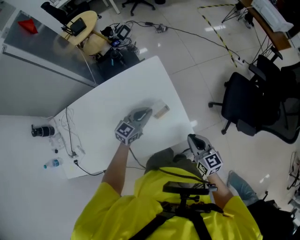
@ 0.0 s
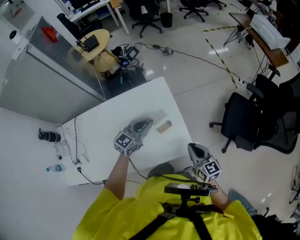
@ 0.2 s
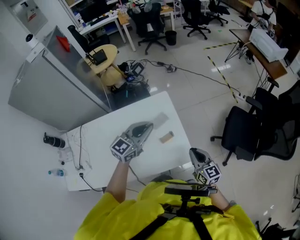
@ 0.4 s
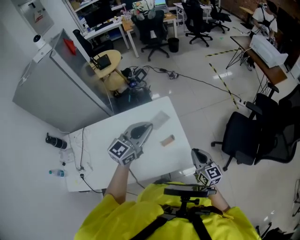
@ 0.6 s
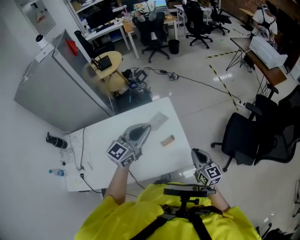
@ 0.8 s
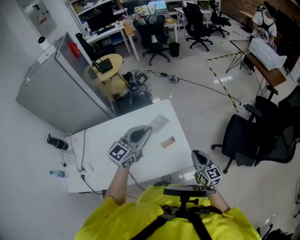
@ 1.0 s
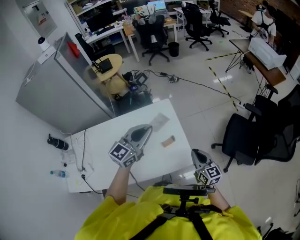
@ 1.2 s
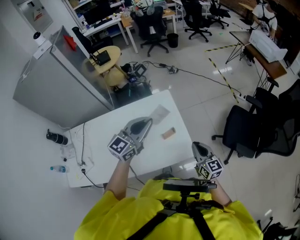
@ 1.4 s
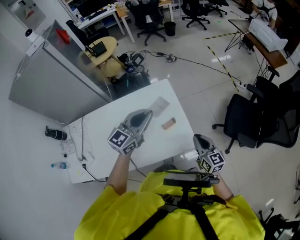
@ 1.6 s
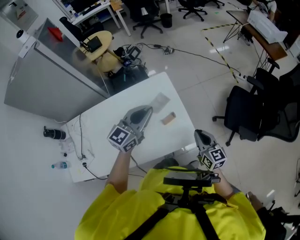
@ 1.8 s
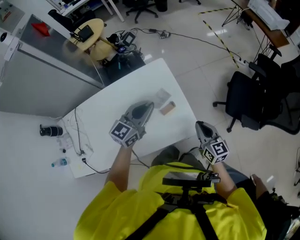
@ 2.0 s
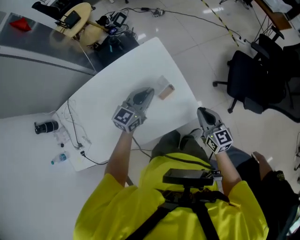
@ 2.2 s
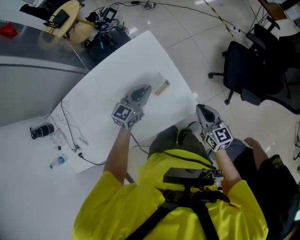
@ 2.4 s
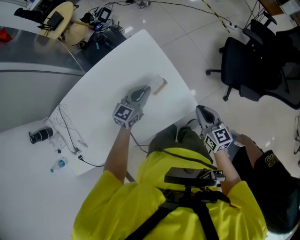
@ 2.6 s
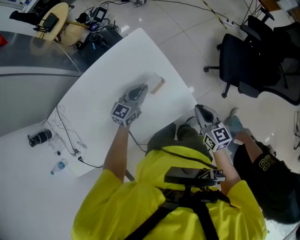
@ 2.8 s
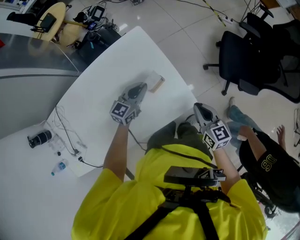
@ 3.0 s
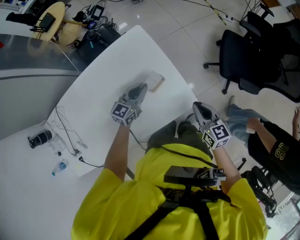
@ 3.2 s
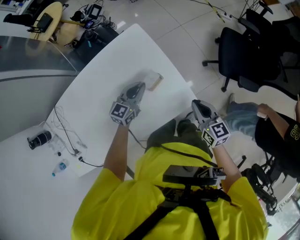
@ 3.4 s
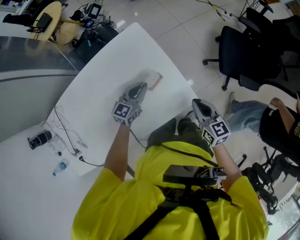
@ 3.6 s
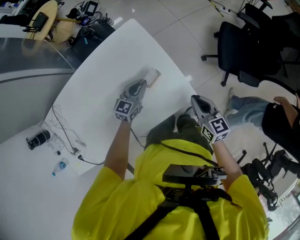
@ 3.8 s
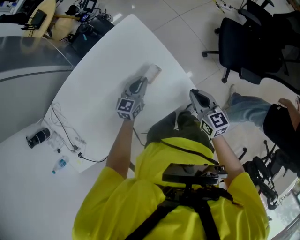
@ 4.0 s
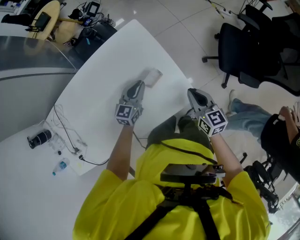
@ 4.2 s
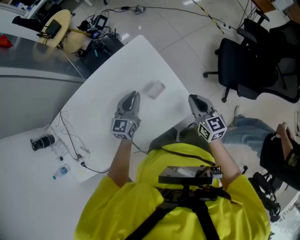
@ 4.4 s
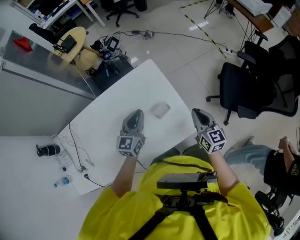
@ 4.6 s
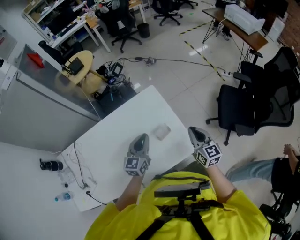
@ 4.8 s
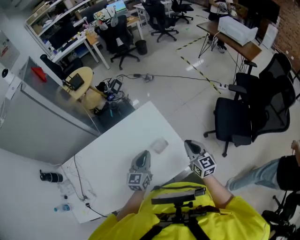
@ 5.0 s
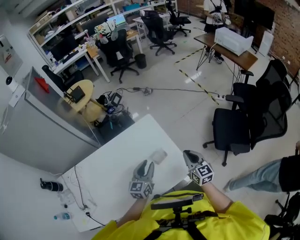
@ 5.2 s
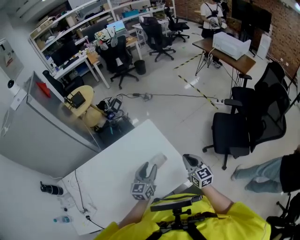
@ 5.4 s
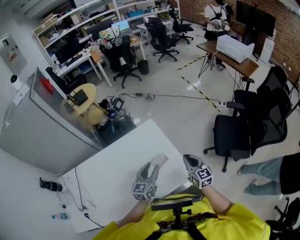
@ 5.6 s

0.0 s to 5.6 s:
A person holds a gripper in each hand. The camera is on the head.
0.0 to 1.4 s: The right gripper heads upward, covering roughly 5 cm, while the left gripper shifts approximately 25 cm upward.
1.4 to 2.8 s: The right gripper goes about 10 cm downward, while the left gripper heads downward, covering some 30 cm, and swivels some 20 degrees.
2.8 to 4.2 s: The right gripper ends up some 5 cm from where it was.
4.2 to 5.6 s: The left gripper goes approximately 15 cm upward and backward, and opens its fingers, while the right gripper is displaced upward by some 10 cm.

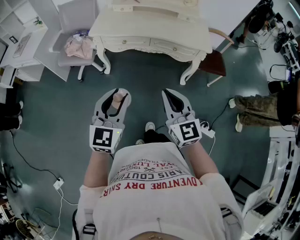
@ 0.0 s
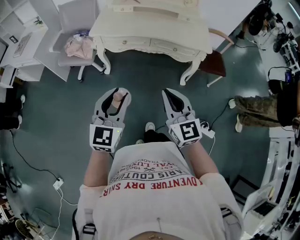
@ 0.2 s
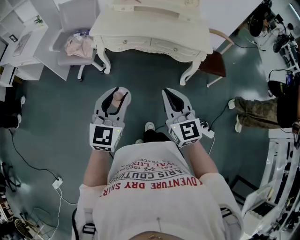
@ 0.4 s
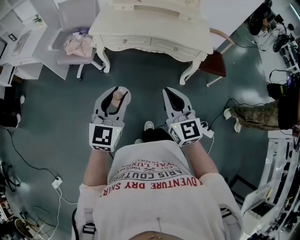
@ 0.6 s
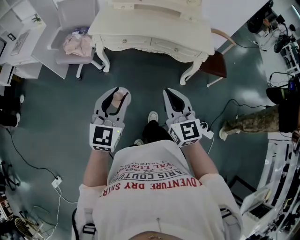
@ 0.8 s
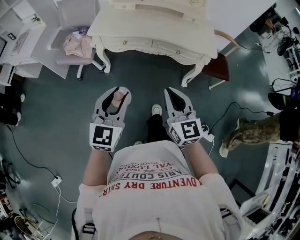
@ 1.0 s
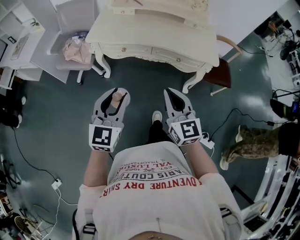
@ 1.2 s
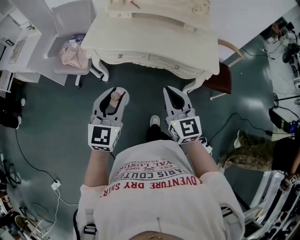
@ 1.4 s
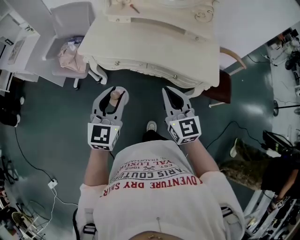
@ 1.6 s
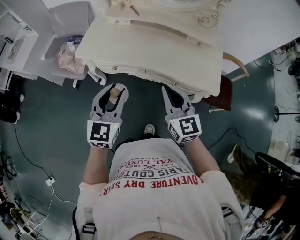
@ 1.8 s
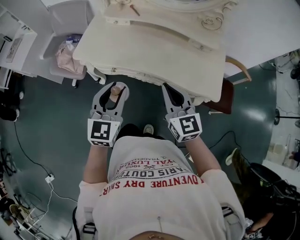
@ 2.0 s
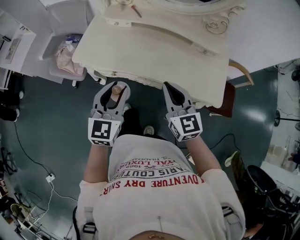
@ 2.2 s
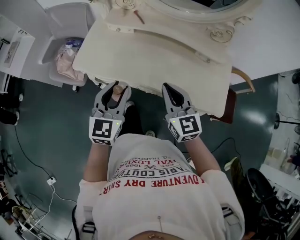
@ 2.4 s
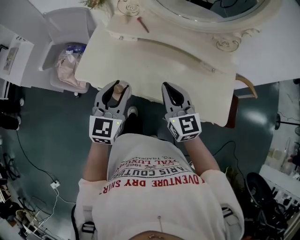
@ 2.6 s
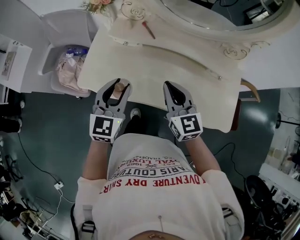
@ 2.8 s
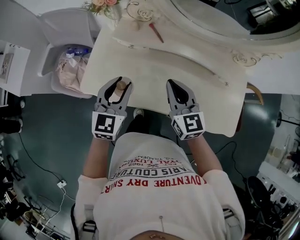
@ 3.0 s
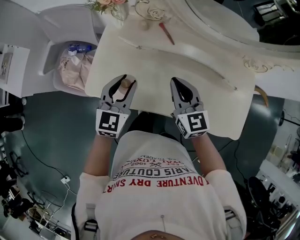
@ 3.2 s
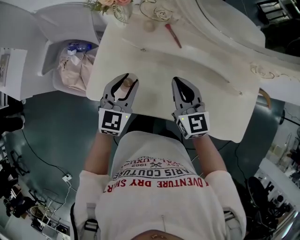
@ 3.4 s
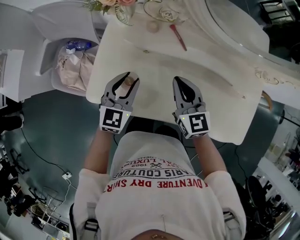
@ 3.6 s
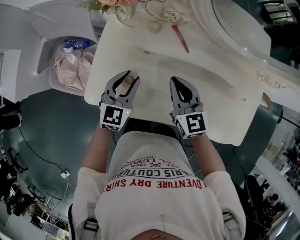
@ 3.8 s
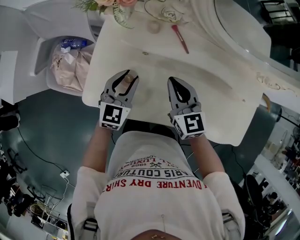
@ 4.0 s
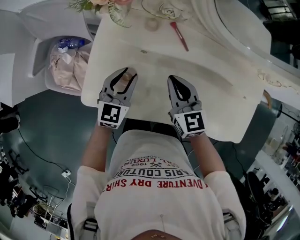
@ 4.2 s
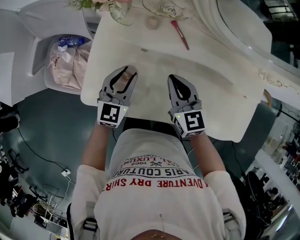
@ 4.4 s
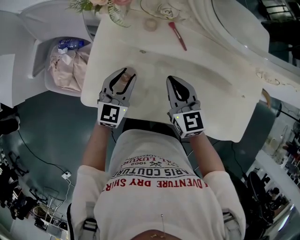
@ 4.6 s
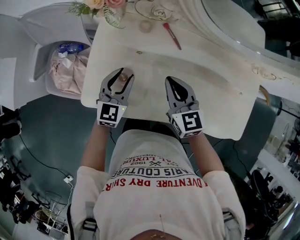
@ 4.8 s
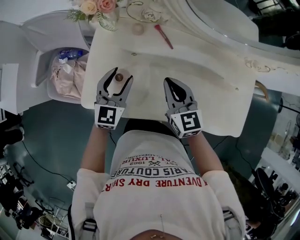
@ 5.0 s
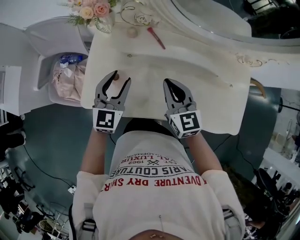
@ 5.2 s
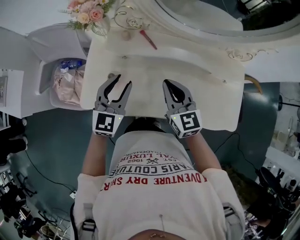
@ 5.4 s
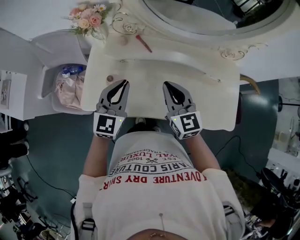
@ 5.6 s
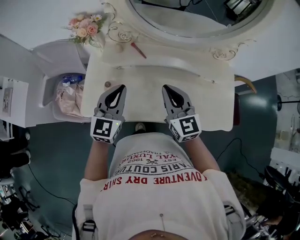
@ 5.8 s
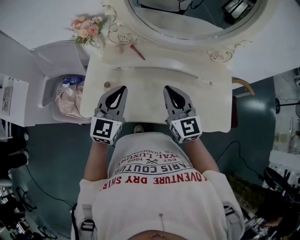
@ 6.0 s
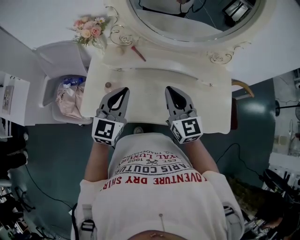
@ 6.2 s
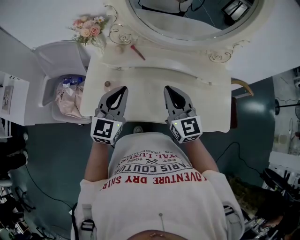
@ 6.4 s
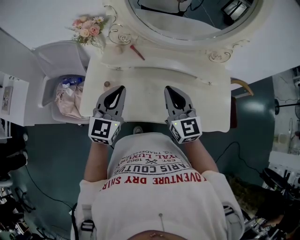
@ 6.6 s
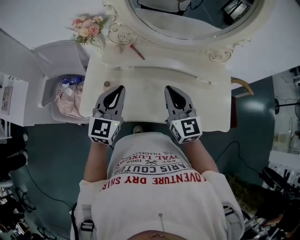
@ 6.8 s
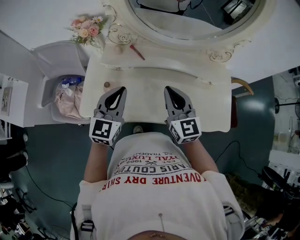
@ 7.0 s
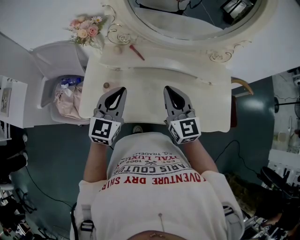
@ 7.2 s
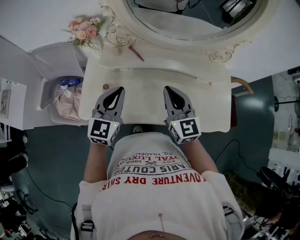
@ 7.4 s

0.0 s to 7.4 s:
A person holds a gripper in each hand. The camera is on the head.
0.0 to 1.4 s: Both grippers travel together forward, about 20 cm.
1.4 to 3.0 s: The two grippers travel together, forward, roughly 50 cm.
3.0 to 4.4 s: The left gripper is displaced downward and forward by approximately 20 cm, while the right gripper heads downward, forward and to the left, covering approximately 15 cm.
4.4 to 6.0 s: The two grippers go some 25 cm upward, backward and to the right. The left gripper closes, while the right gripper rotates approximately 20 degrees.
6.0 to 7.4 s: There are only small adjustments of the grippers.

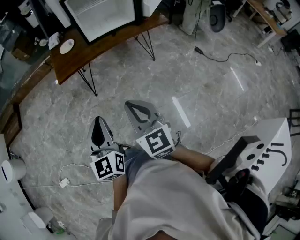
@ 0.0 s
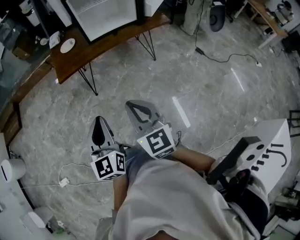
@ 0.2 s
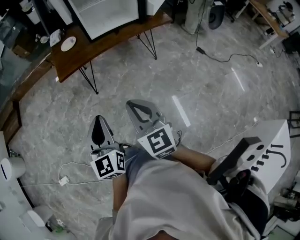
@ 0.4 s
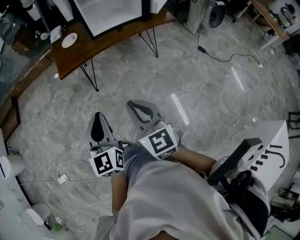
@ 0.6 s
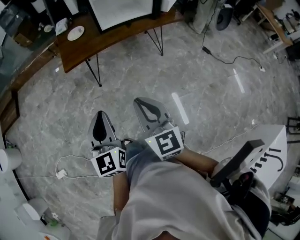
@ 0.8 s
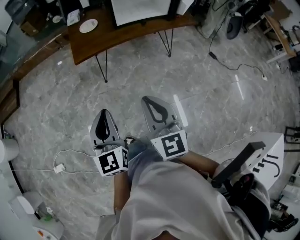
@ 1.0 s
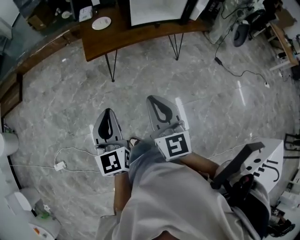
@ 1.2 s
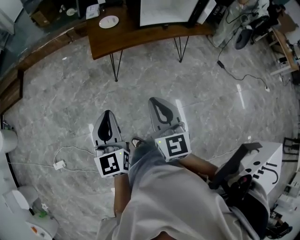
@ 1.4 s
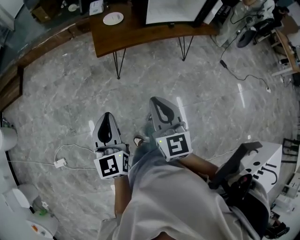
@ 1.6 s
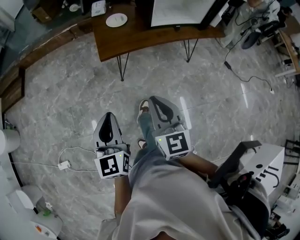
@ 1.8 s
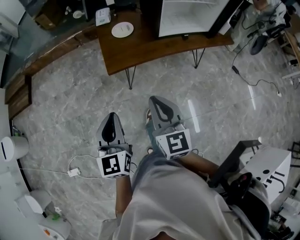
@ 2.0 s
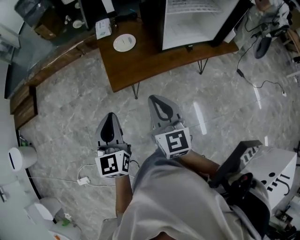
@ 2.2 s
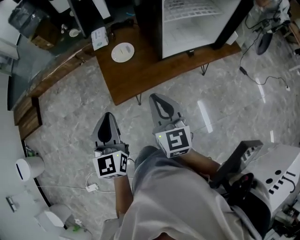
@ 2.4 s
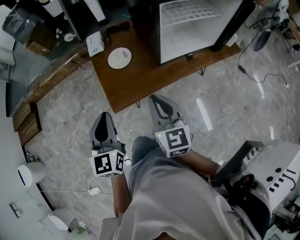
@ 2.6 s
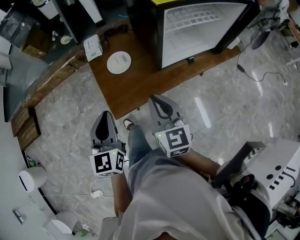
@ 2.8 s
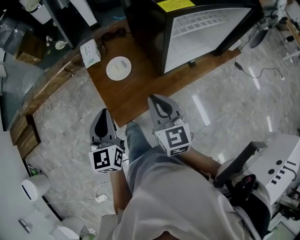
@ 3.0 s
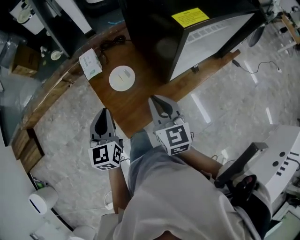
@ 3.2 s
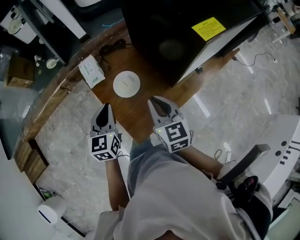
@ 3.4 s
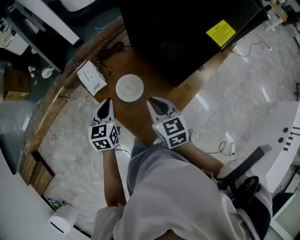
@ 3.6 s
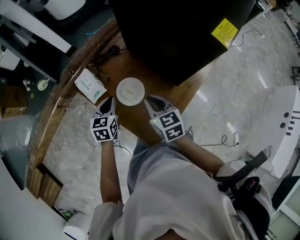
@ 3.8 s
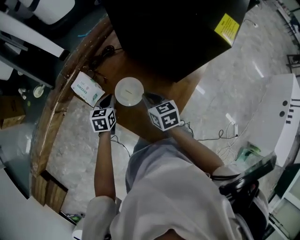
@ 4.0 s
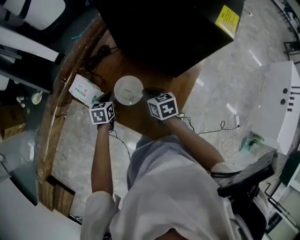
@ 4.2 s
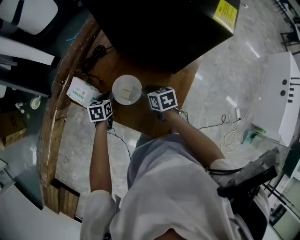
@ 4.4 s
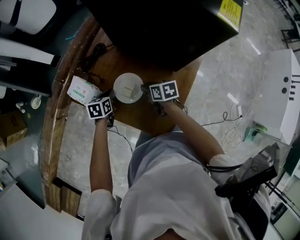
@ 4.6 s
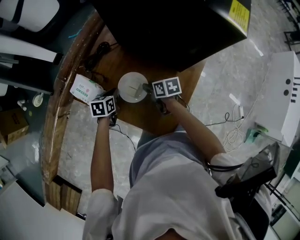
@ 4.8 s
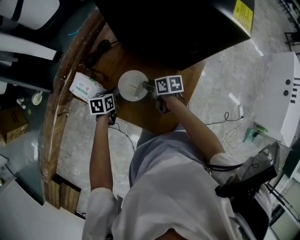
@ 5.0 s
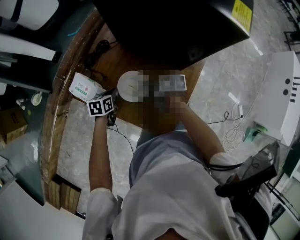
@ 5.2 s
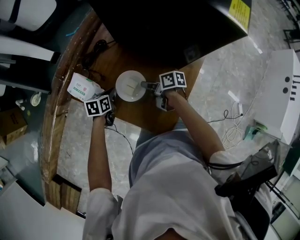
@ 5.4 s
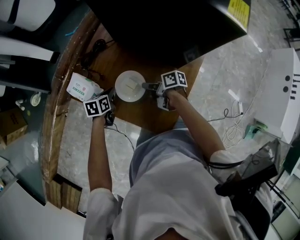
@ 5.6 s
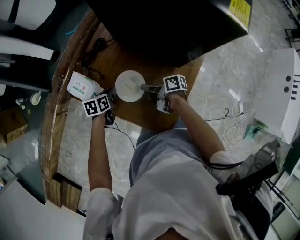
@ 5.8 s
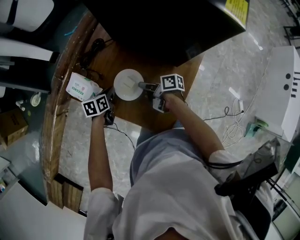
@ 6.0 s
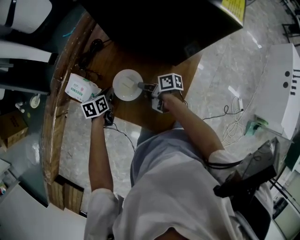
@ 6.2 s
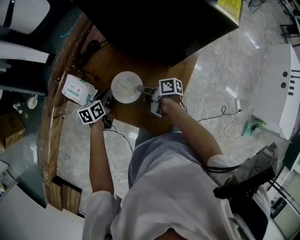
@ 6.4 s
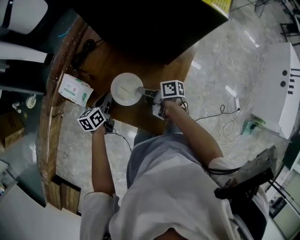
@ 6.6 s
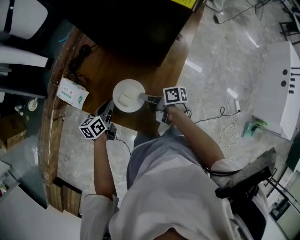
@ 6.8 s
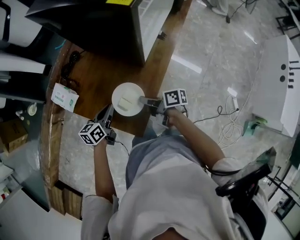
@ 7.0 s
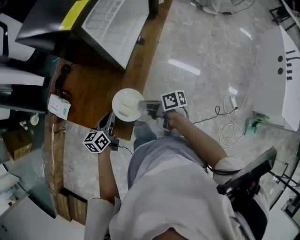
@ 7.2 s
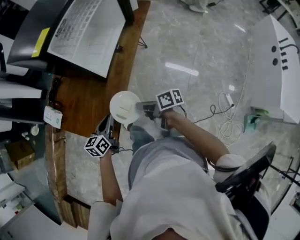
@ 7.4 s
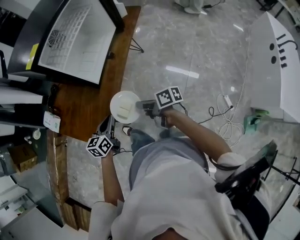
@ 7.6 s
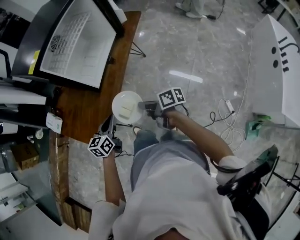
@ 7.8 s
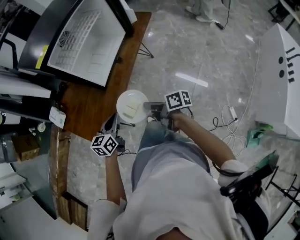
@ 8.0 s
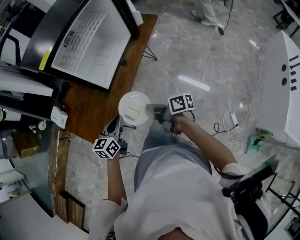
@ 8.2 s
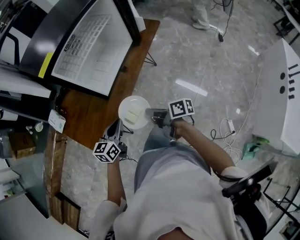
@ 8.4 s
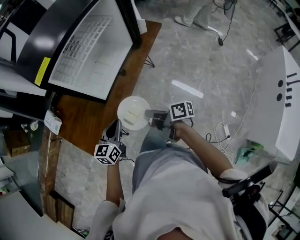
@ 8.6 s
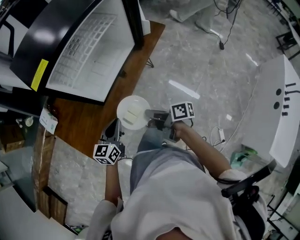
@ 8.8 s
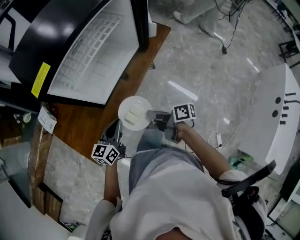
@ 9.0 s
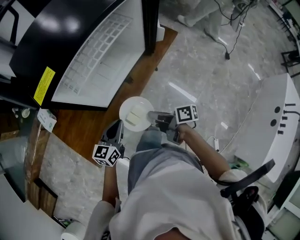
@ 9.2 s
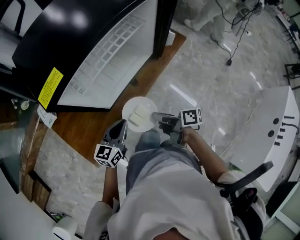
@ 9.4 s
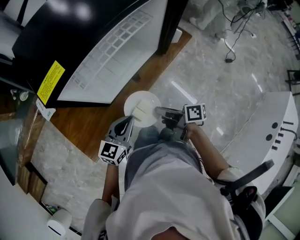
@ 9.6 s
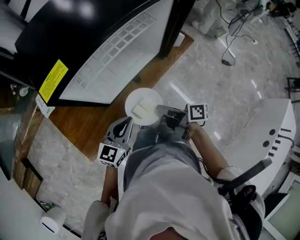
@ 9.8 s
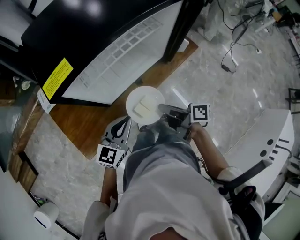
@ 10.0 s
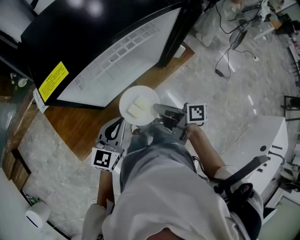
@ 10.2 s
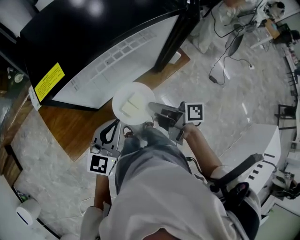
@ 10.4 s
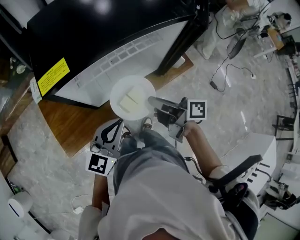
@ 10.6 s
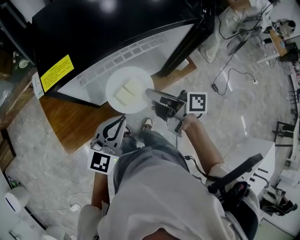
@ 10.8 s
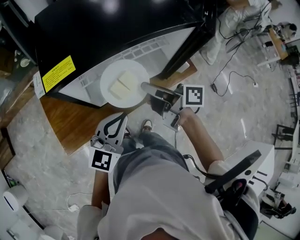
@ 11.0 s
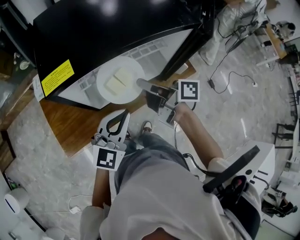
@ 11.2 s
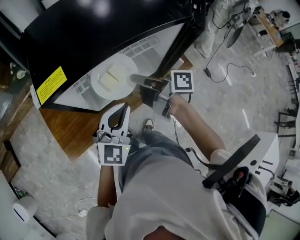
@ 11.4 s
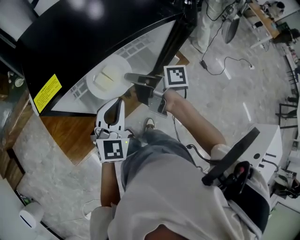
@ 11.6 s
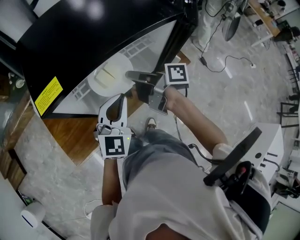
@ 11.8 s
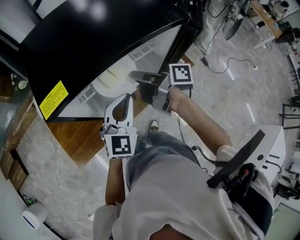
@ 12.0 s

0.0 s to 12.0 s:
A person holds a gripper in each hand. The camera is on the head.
0.0 to 1.6 s: The left gripper is displaced to the left by some 35 cm. Meanwhile the right gripper goes some 35 cm to the left and forward.
1.6 to 3.0 s: The two grippers travel together, forward, about 60 cm.
3.0 to 4.4 s: The right gripper moves roughly 40 cm, and angles its fingers downward, by roughly 30 degrees; the left gripper ends up approximately 50 cm from where it was, and tilts its fingers roughly 40 degrees downward.
4.4 to 6.0 s: The right gripper rotates around the line of its fingers by about 40 degrees, clockwise from behind.
6.0 to 7.6 s: The two grippers travel together, to the right and backward, some 60 cm. The left gripper rotates approximately 30 degrees.
7.6 to 9.0 s: Both grippers move forward and to the right, about 25 cm.
9.0 to 10.4 s: The right gripper moves forward and upward, roughly 25 cm, and changes its angle by roughly 20 degrees, while the left gripper shifts some 20 cm upward, forward and to the right, and rotates some 20 degrees.
10.4 to 12.0 s: The right gripper goes about 15 cm forward. The left gripper travels forward and to the right by some 15 cm, and turns by some 20 degrees.
